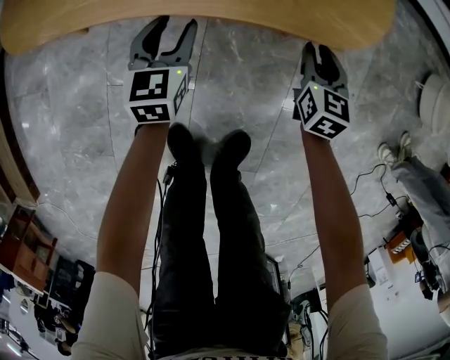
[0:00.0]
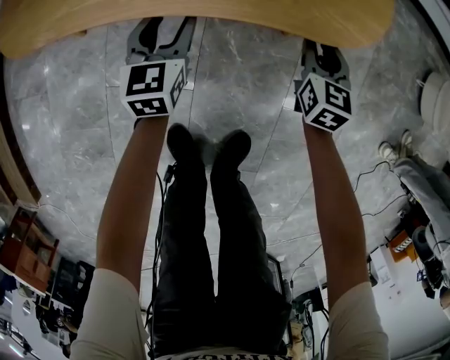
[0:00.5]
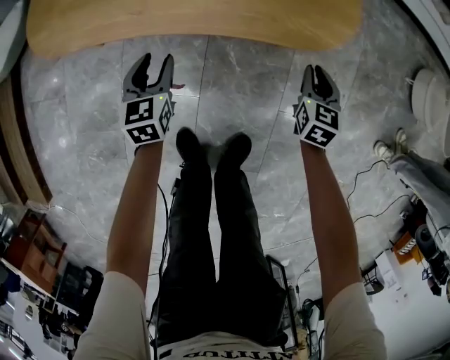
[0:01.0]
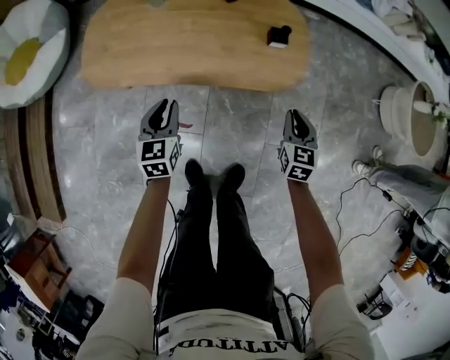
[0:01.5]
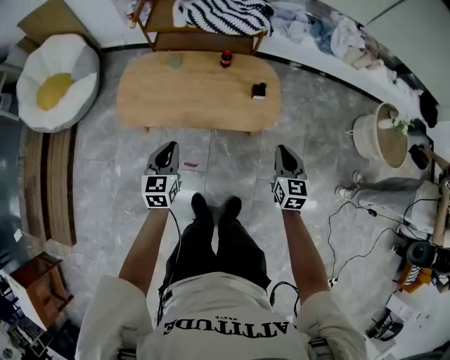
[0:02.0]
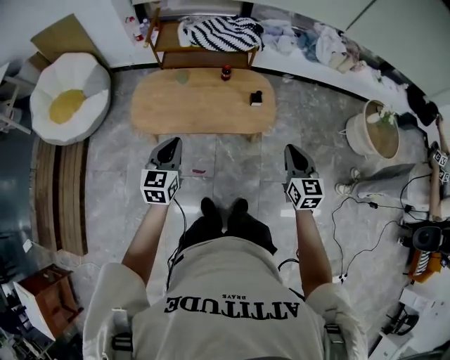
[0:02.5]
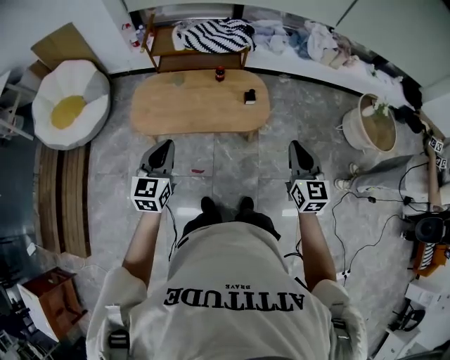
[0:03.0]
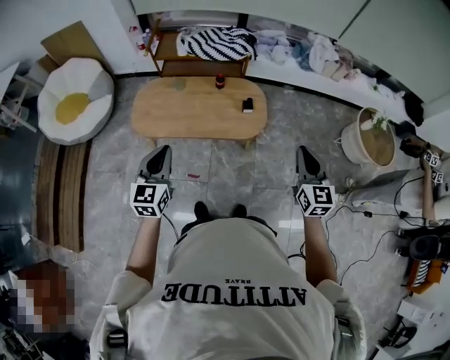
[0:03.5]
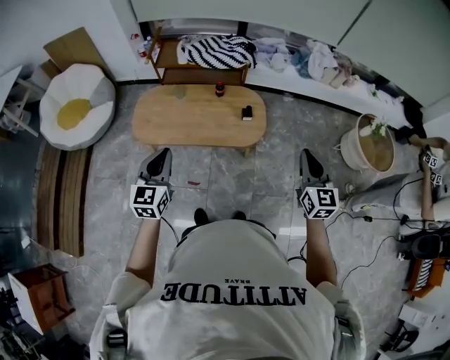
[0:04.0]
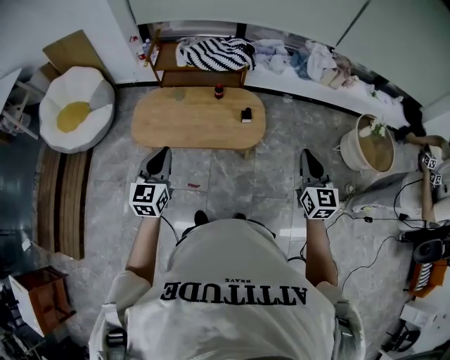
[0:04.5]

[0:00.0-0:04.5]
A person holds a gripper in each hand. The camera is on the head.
0:00.0 to 0:02.0: The grippers both shift upward by approximately 50 cm. The left gripper closes up. Meanwhile the right gripper closes.
0:02.0 to 0:04.5: Both grippers move upward, approximately 25 cm.

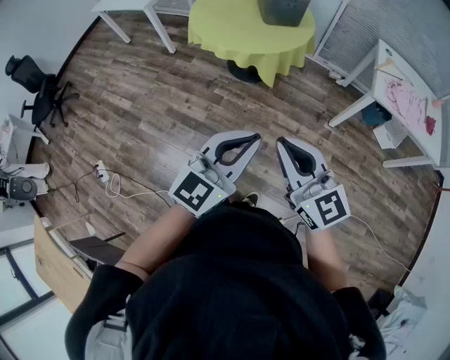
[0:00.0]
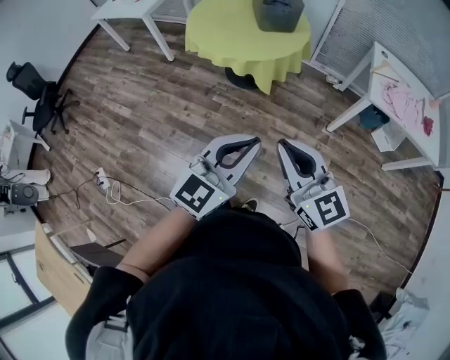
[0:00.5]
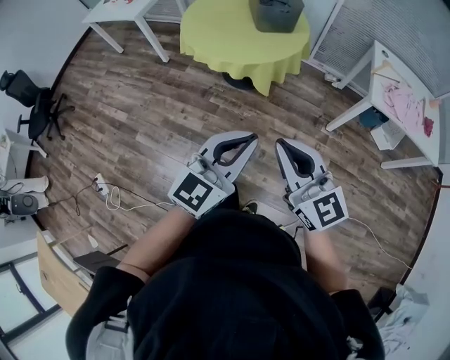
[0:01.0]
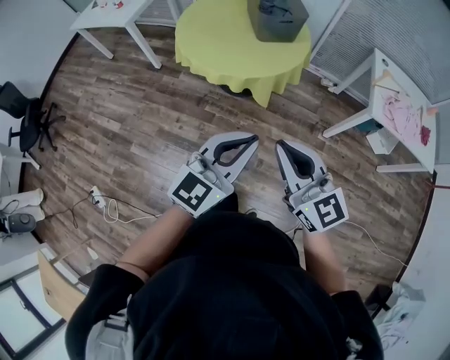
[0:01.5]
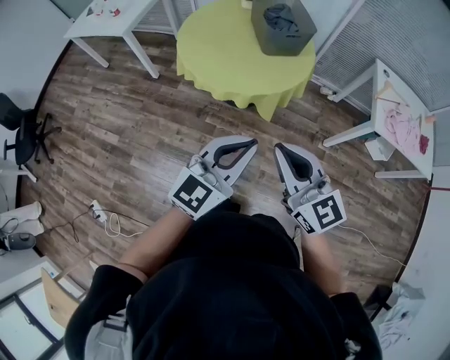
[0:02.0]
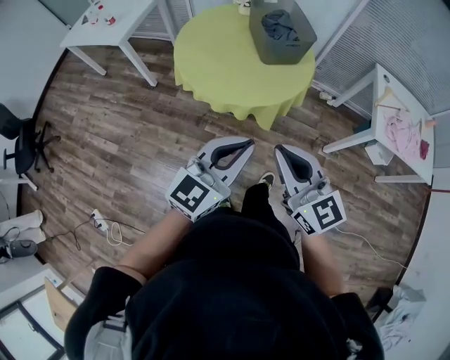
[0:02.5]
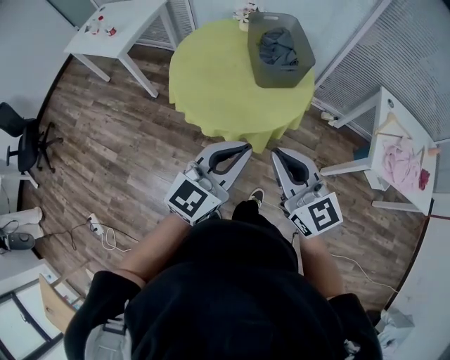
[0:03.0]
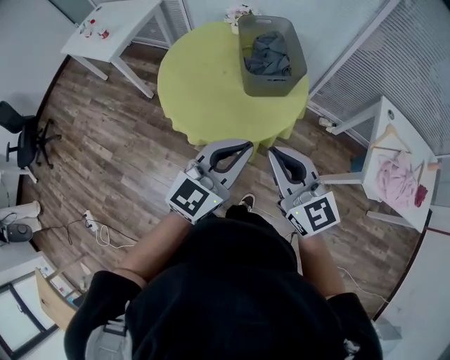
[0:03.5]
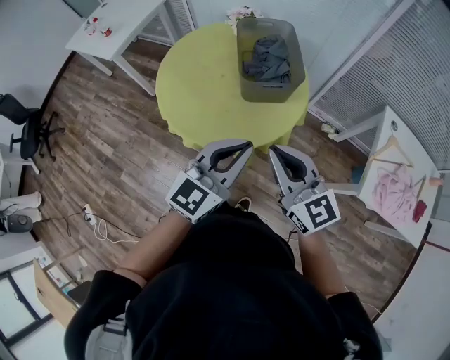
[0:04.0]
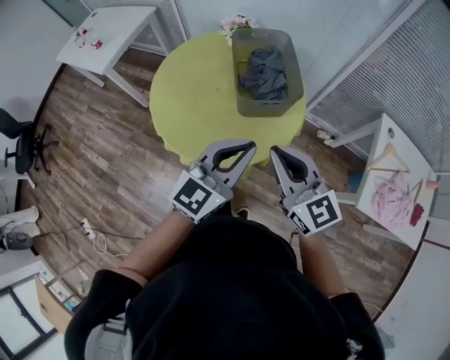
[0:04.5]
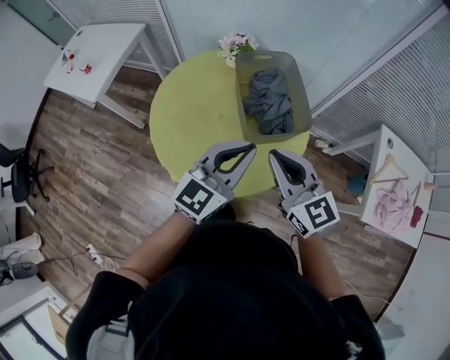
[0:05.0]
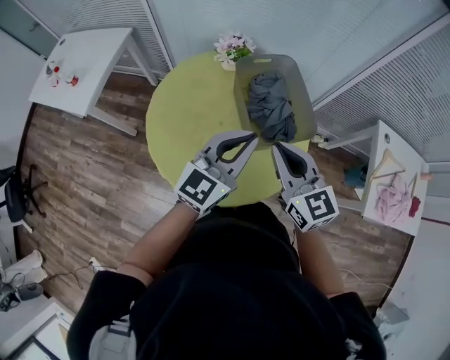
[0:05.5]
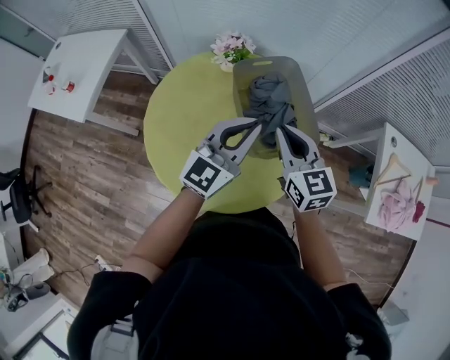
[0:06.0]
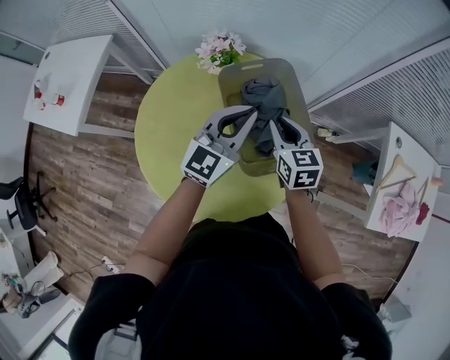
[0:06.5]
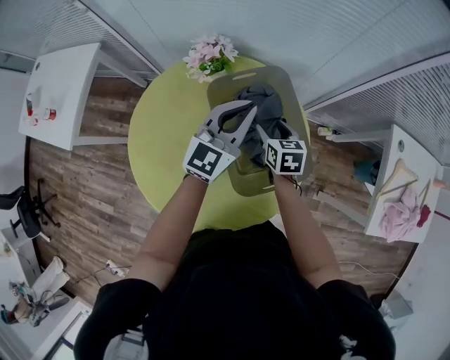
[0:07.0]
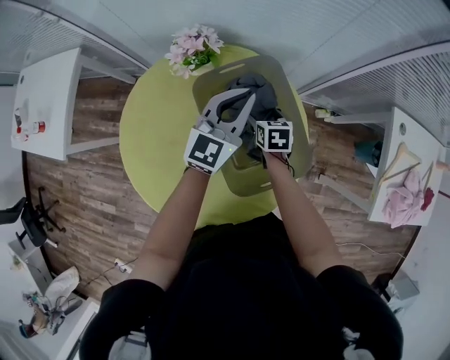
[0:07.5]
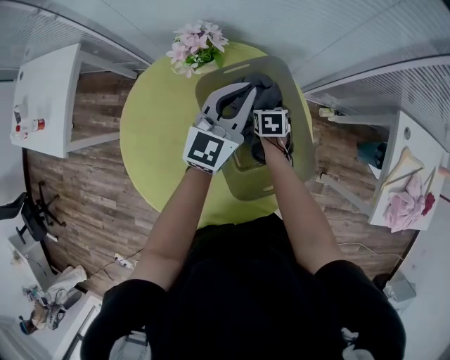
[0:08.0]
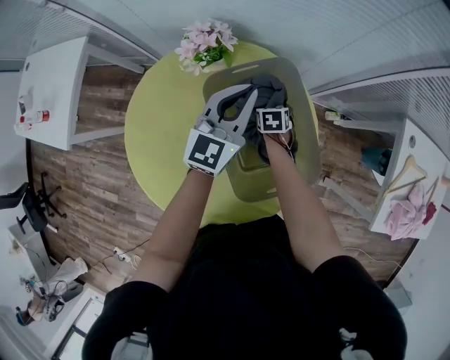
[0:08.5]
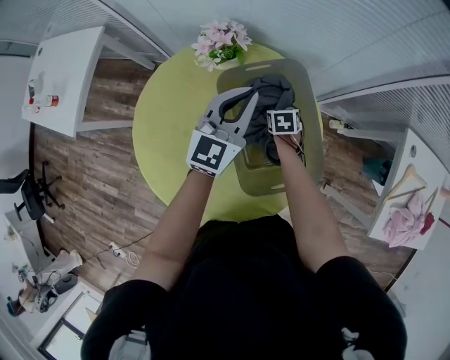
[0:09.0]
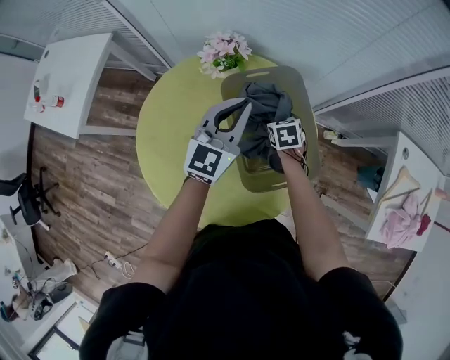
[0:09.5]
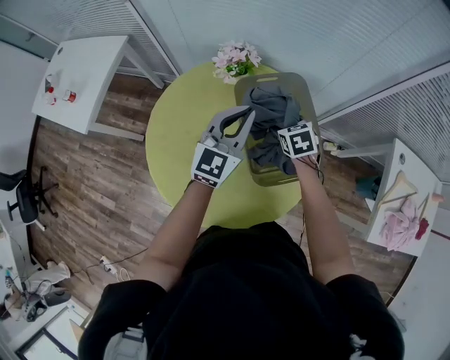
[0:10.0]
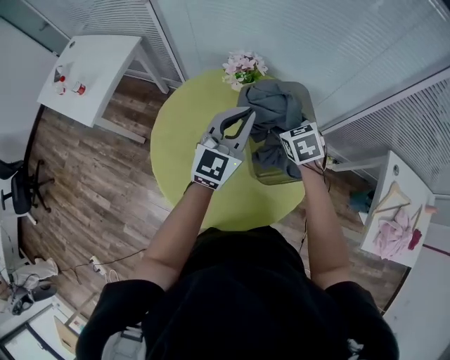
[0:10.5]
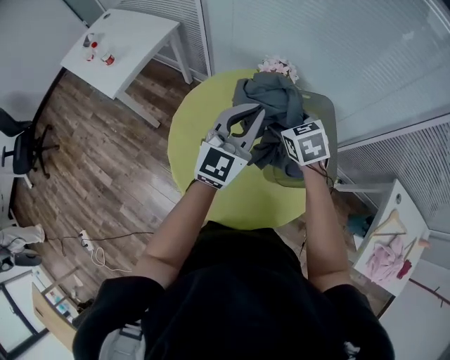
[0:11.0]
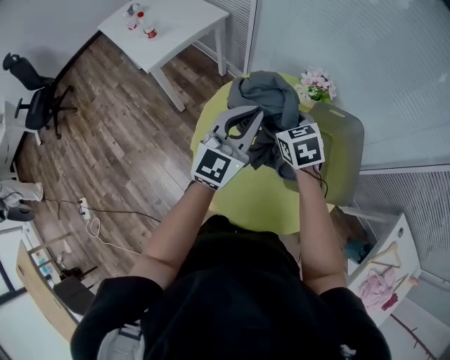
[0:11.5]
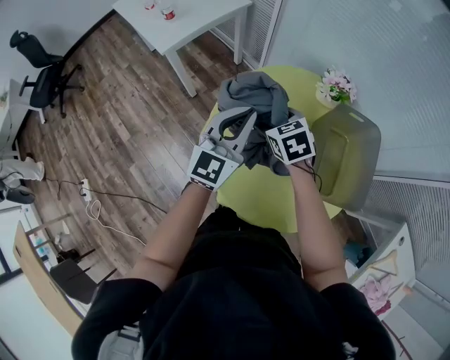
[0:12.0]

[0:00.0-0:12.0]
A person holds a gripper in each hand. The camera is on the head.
0:00.0 to 0:02.0: Both grippers move forward and to the left, approximately 25 cm.
0:02.0 to 0:04.0: The grippers both shift forward and to the right by approximately 35 cm.
0:04.0 to 0:06.0: Both grippers move forward, roughly 35 cm. The right gripper rotates roughly 30 degrees.
0:06.0 to 0:08.0: The left gripper moves forward and downward, about 25 cm, while the right gripper goes some 40 cm downward and forward, points its fingers some 40 degrees further downward, and opens its fingers.
0:08.0 to 0:10.0: The right gripper goes approximately 15 cm upward, and rotates some 30 degrees. The left gripper goes some 15 cm backward, to the left and upward.
0:10.0 to 0:12.0: The right gripper shifts by some 40 cm, and swivels some 40 degrees, while the left gripper ends up some 30 cm from where it was, and swivels roughly 30 degrees.

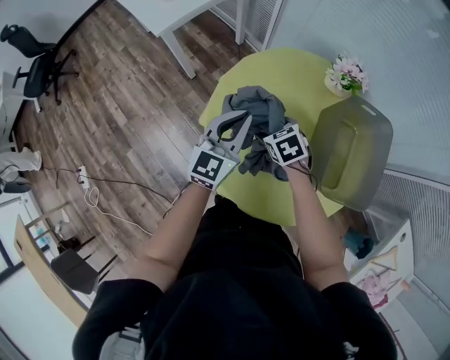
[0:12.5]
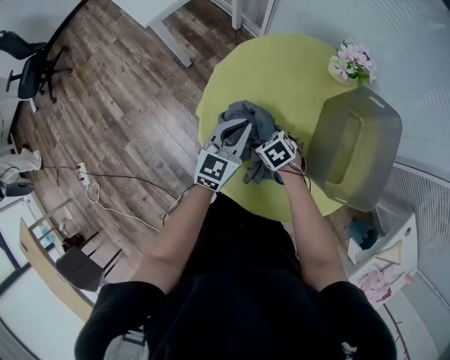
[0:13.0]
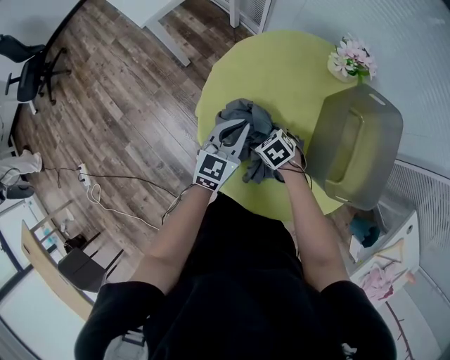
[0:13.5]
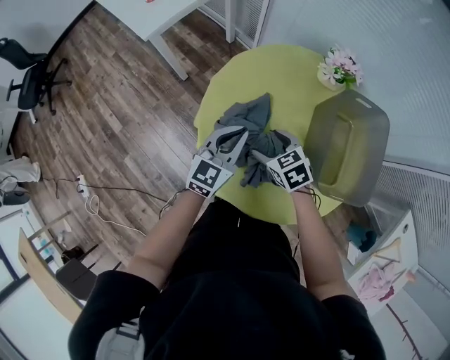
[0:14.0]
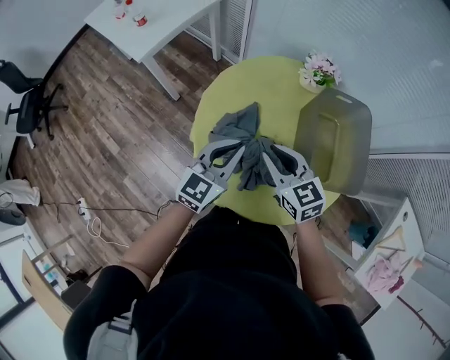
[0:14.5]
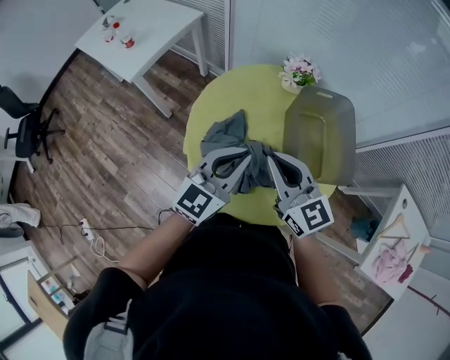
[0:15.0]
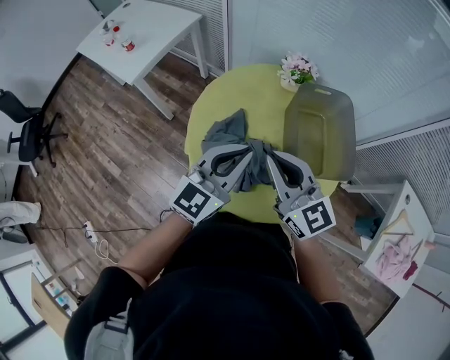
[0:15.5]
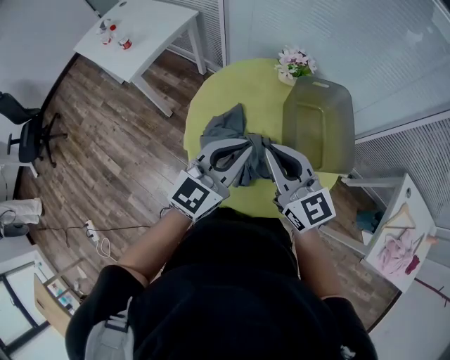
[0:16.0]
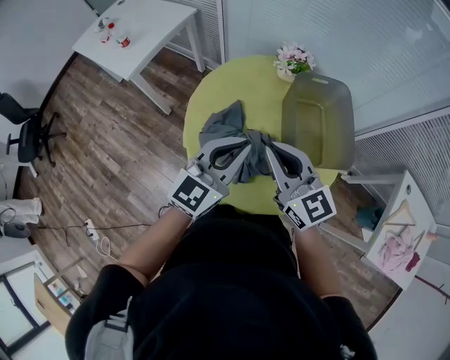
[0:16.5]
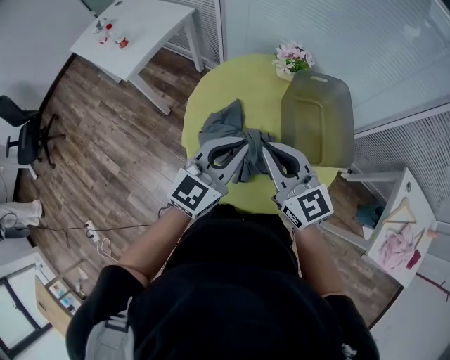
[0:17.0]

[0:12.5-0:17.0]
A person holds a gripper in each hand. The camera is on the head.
0:12.5 to 0:14.5: The right gripper shifts some 15 cm upward and backward, points its fingers roughly 30 degrees further upward, and closes. Meanwhile the left gripper shifts some 5 cm backward, and goes downward and returns, roughly 10 cm each way.
0:14.5 to 0:17.0: The left gripper goes some 10 cm upward and to the right, while the right gripper shifts roughly 10 cm upward and backward.

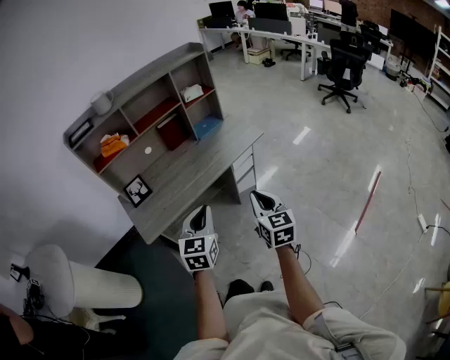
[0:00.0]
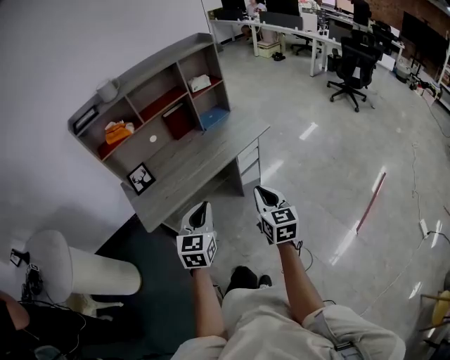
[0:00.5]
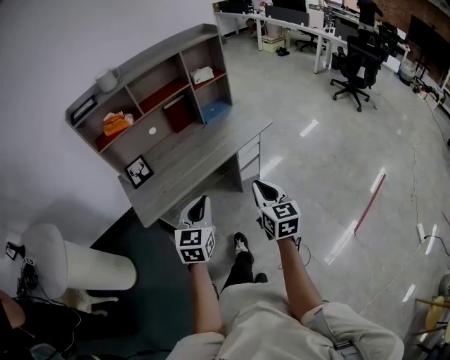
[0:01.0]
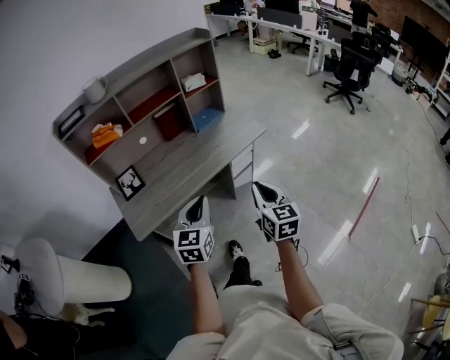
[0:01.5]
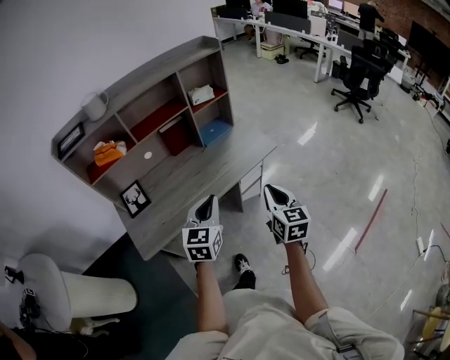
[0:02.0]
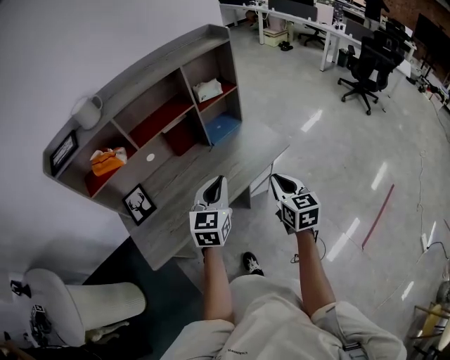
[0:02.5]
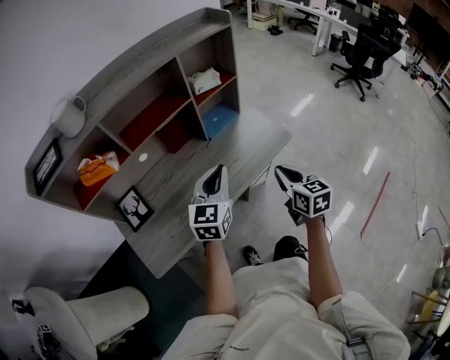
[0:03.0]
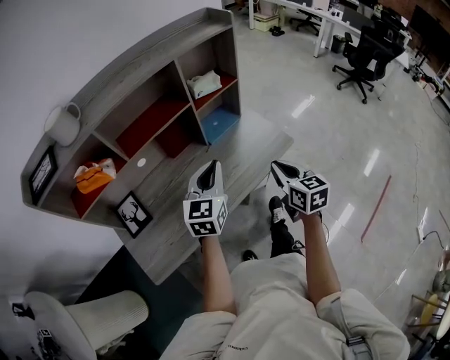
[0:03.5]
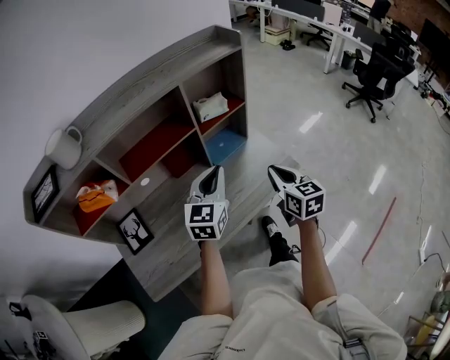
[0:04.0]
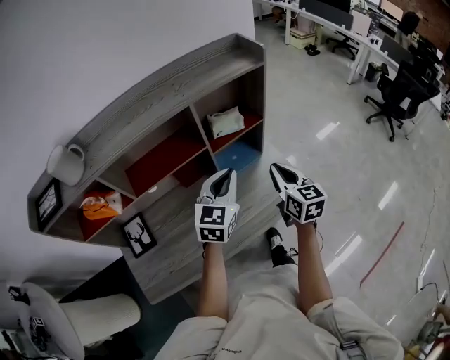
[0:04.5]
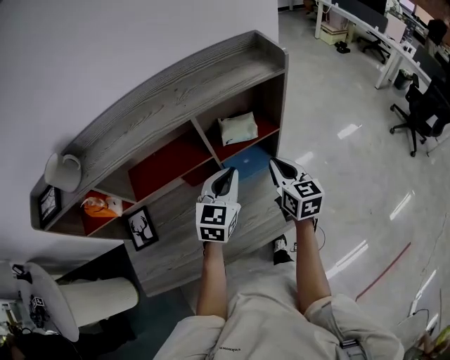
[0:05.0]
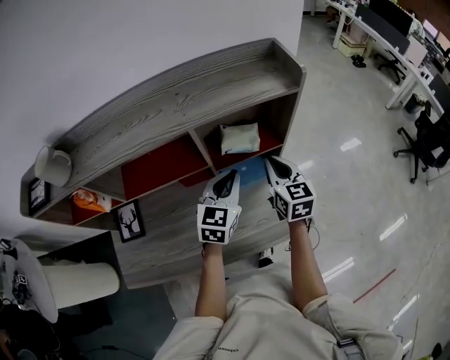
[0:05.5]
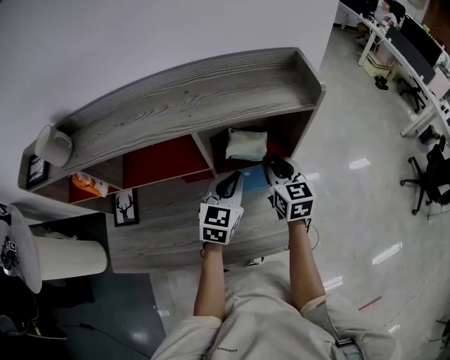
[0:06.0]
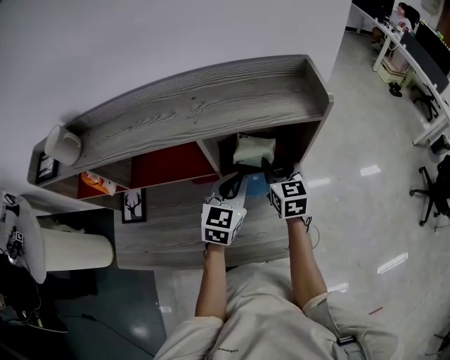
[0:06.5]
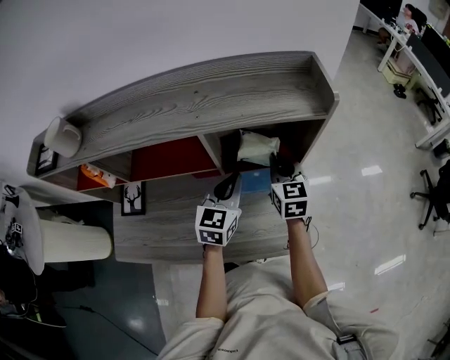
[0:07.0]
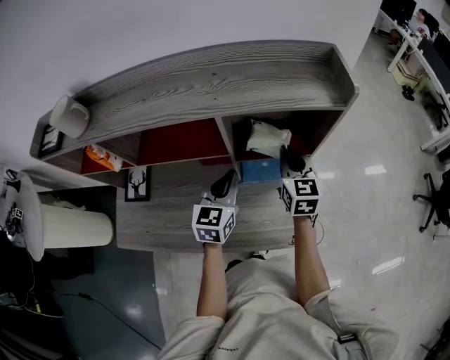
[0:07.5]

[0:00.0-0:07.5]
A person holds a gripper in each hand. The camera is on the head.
0:00.0 to 0:02.0: Both grippers move forward, approximately 20 cm.
0:02.0 to 0:04.0: The two grippers go roughly 30 cm forward.
0:04.0 to 0:05.5: The two grippers go some 25 cm forward.
0:05.5 to 0:07.5: The right gripper goes roughly 5 cm forward, and opens, then closes again. Meanwhile the left gripper heads to the left, covering approximately 5 cm, and turns by about 20 degrees.
